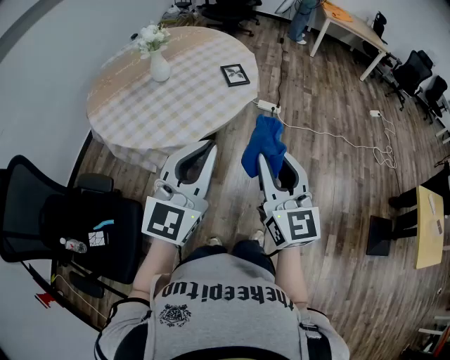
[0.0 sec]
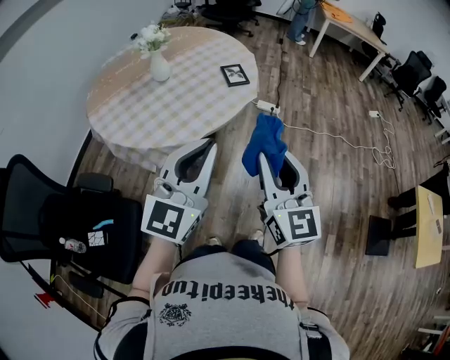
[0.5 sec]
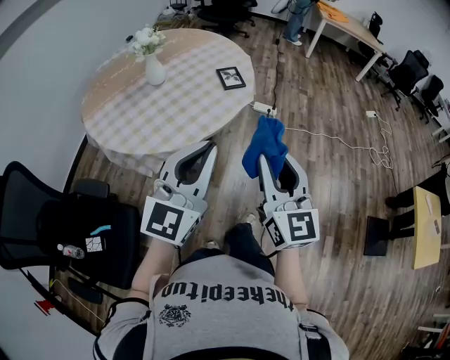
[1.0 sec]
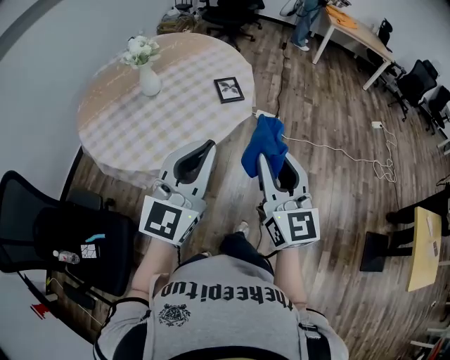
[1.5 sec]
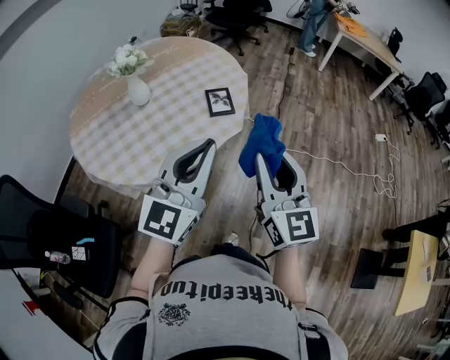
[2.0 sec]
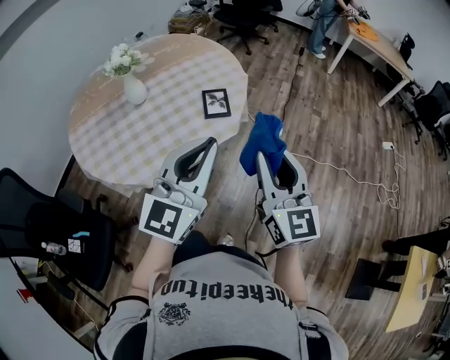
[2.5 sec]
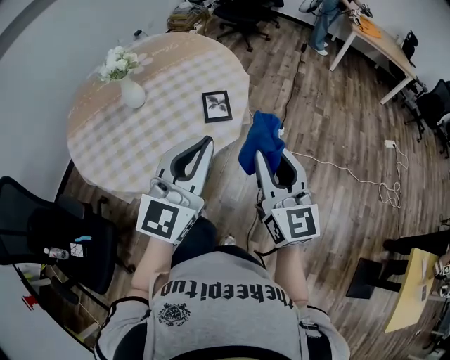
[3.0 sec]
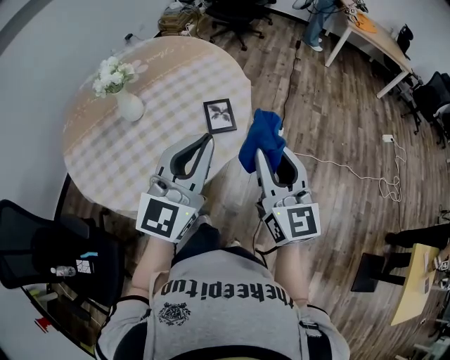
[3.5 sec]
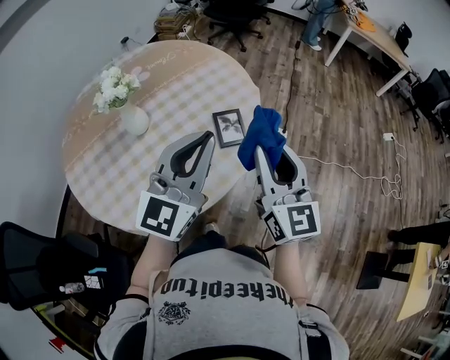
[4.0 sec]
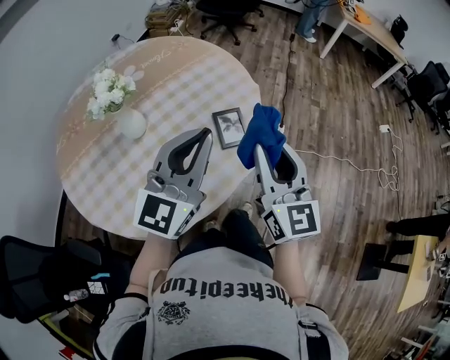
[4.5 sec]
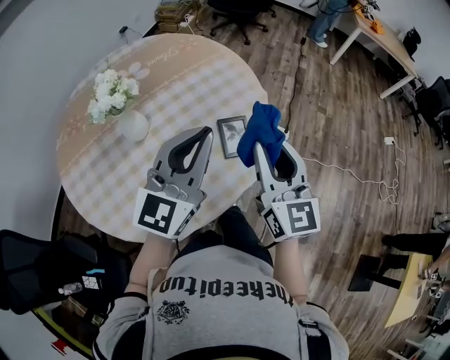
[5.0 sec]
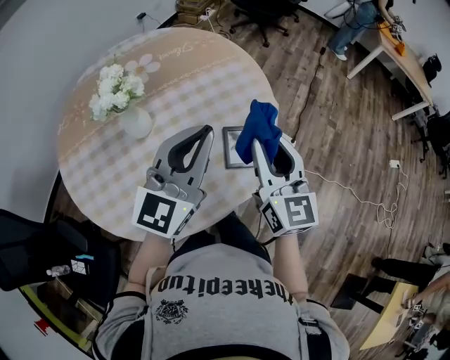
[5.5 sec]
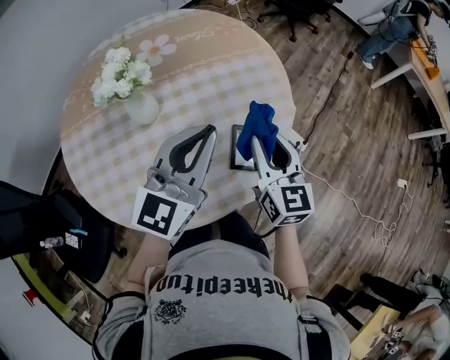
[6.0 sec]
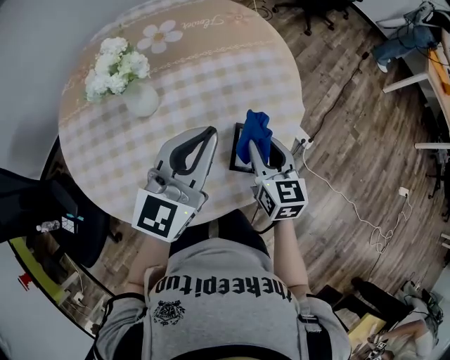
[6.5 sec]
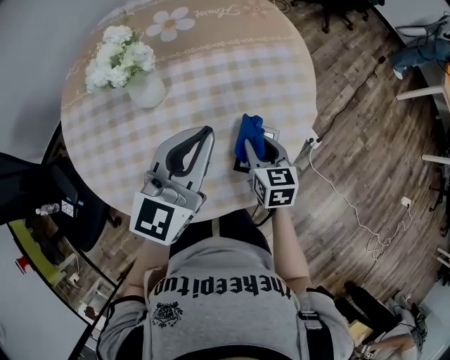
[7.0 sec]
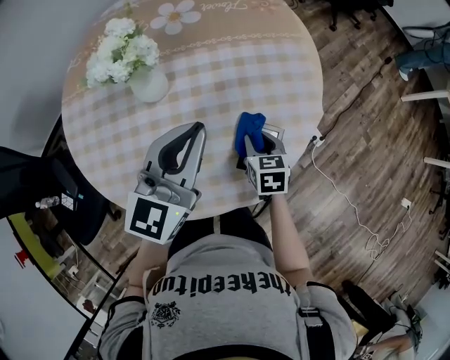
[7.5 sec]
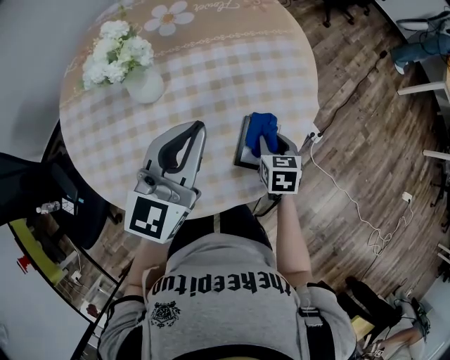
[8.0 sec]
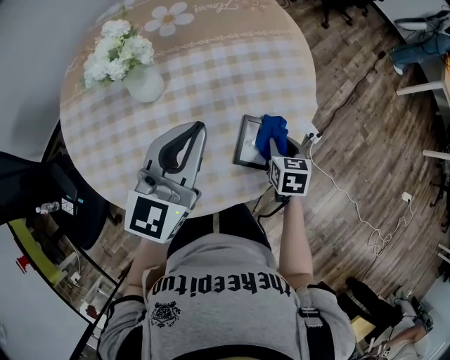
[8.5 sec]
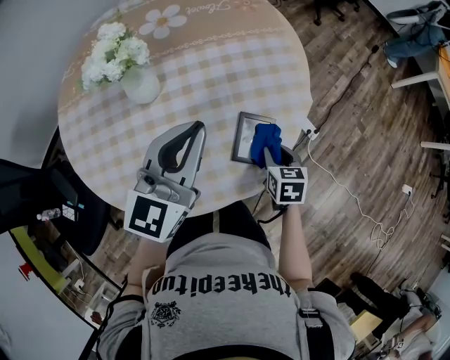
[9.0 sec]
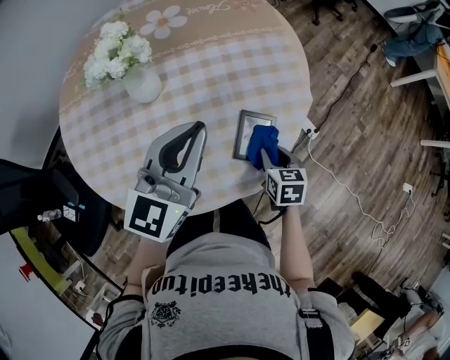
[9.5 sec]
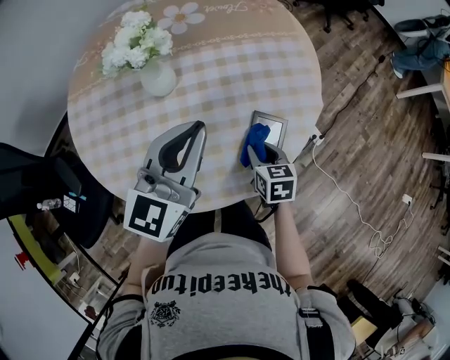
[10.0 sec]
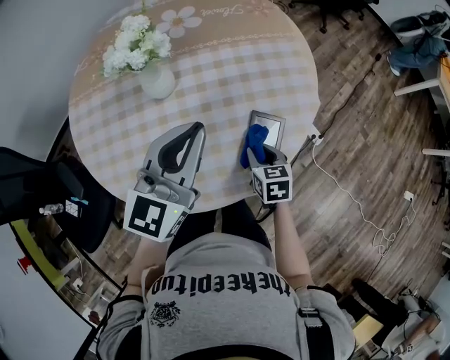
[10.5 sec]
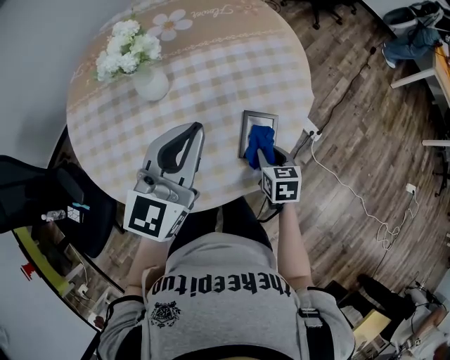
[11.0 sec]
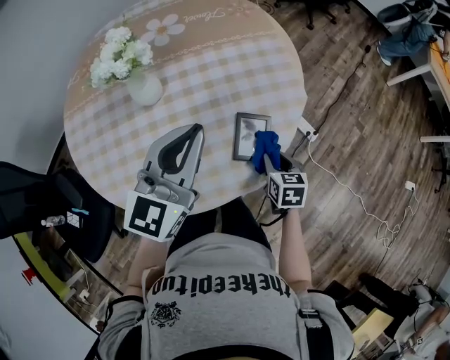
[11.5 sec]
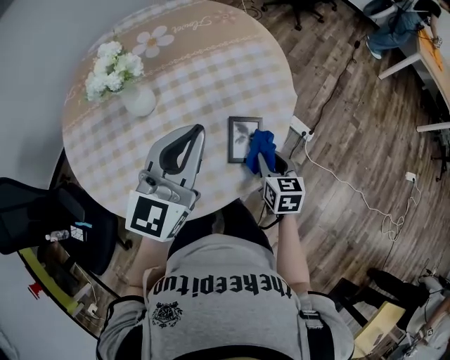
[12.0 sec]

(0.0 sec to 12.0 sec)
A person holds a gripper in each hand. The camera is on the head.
0.0 sec - 2.0 sec: The left gripper shifts roughly 20 cm forward and to the right. The right gripper is displaced forward by roughly 20 cm.
2.0 sec - 4.0 sec: Both grippers move forward, about 20 cm.
4.0 sec - 6.0 sec: The left gripper shifts about 15 cm forward; the right gripper goes roughly 25 cm forward and downward, and swivels roughly 20 degrees.
6.0 sec - 8.0 sec: The left gripper shifts about 5 cm downward. The right gripper shifts approximately 20 cm downward, and angles its fingers downward, by roughly 40 degrees.
8.0 sec - 10.0 sec: The right gripper is displaced to the left and backward by about 10 cm.
10.0 sec - 12.0 sec: The right gripper moves to the right, approximately 10 cm. Meanwhile the left gripper travels to the right by about 5 cm.

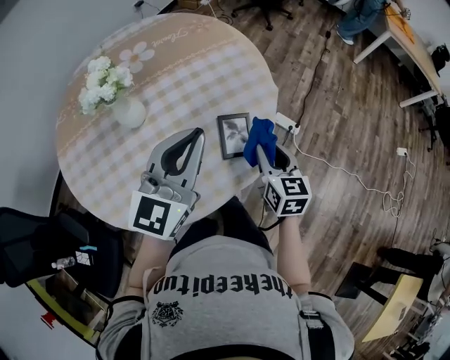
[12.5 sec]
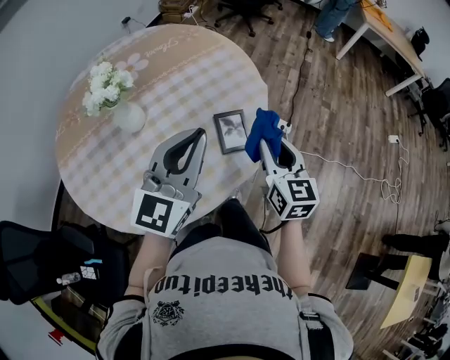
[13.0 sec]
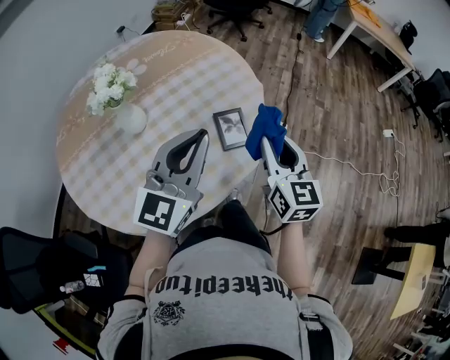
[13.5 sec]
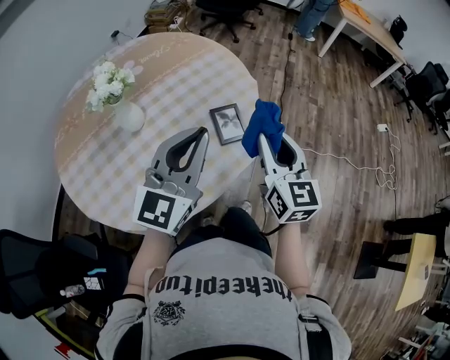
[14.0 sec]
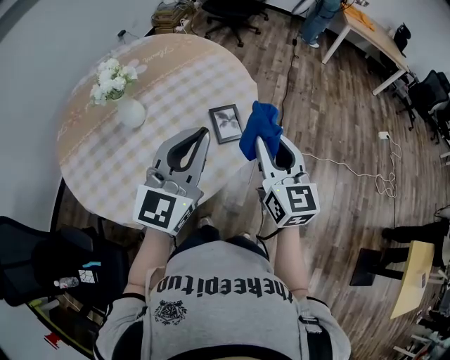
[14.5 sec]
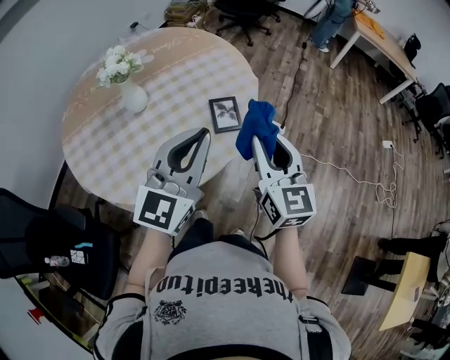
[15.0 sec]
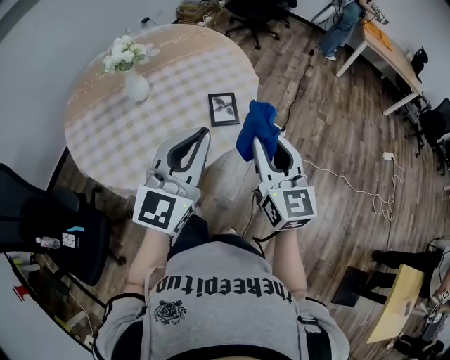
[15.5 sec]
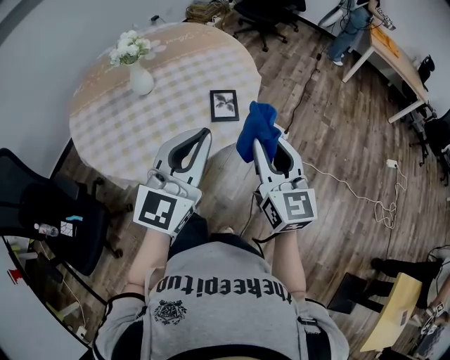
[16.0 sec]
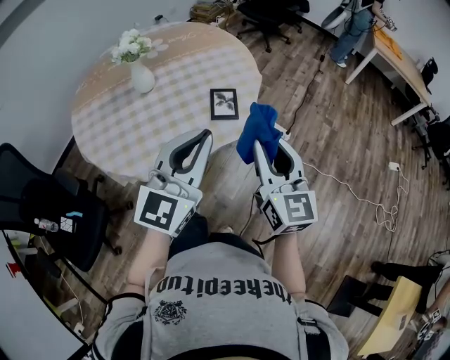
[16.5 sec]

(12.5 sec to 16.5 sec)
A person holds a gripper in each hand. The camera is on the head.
12.5 sec - 14.5 sec: The left gripper heads backward, covering approximately 10 cm. Meanwhile the right gripper shifts approximately 20 cm upward and backward, and swivels approximately 20 degrees.
14.5 sec - 16.5 sec: Both grippers move backward and to the right, about 15 cm.

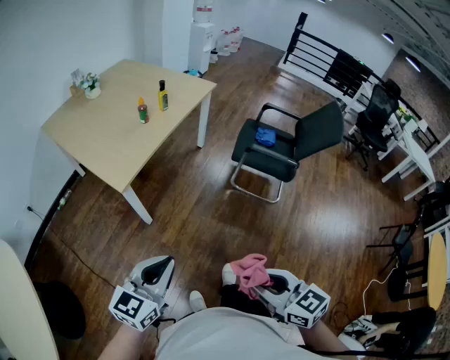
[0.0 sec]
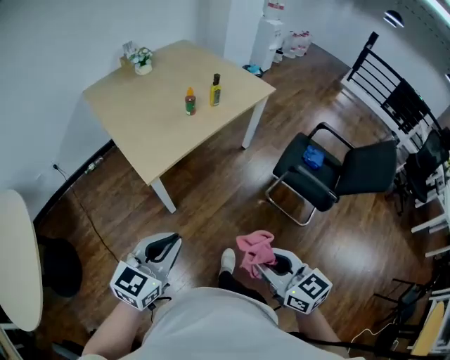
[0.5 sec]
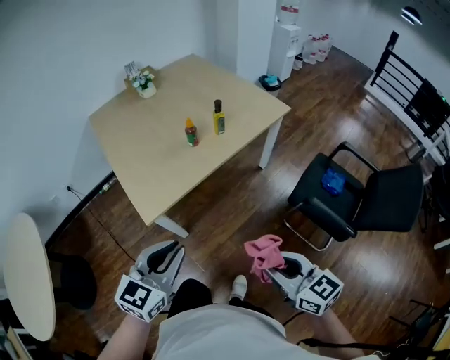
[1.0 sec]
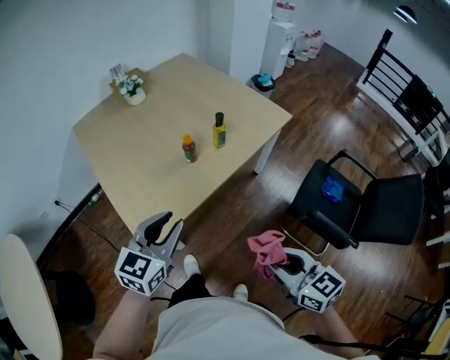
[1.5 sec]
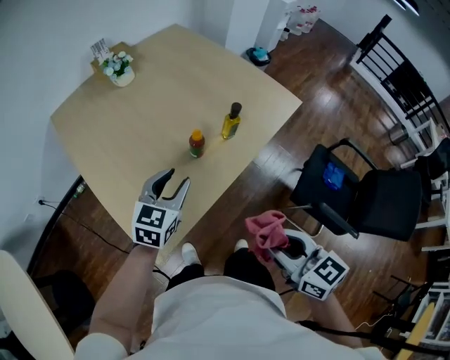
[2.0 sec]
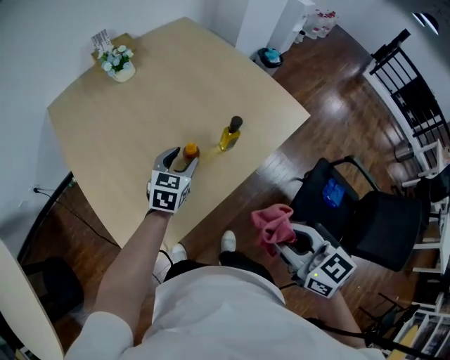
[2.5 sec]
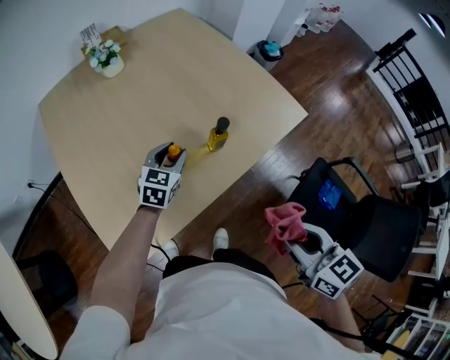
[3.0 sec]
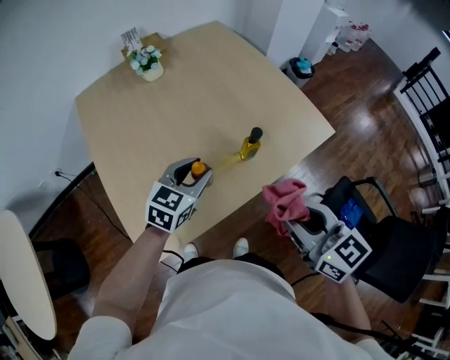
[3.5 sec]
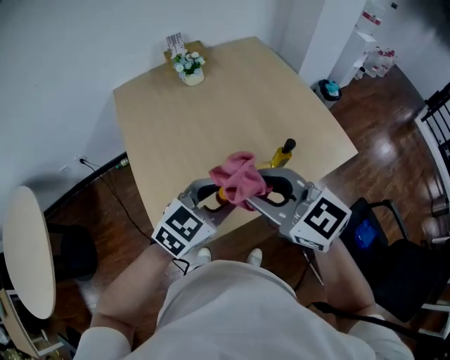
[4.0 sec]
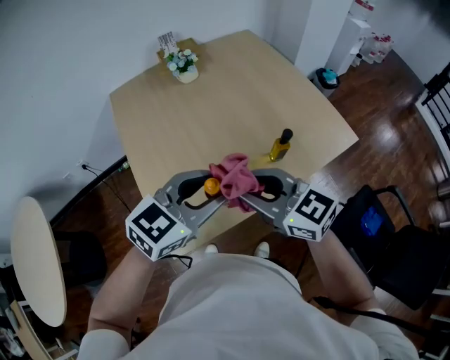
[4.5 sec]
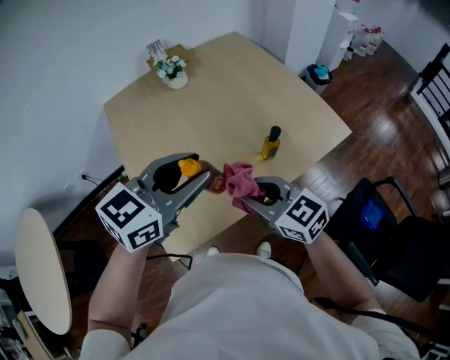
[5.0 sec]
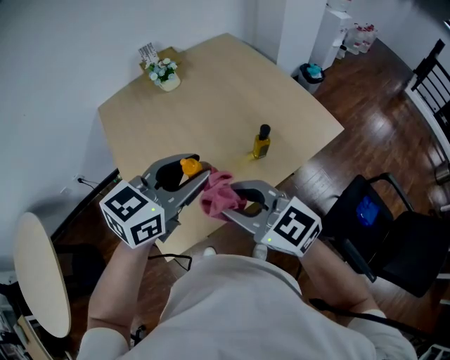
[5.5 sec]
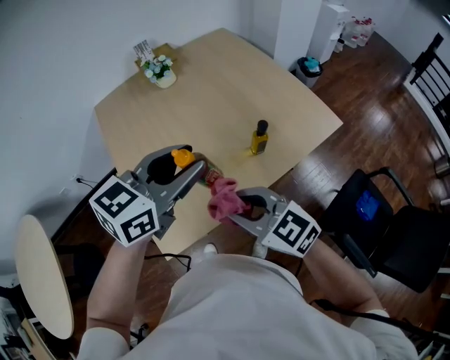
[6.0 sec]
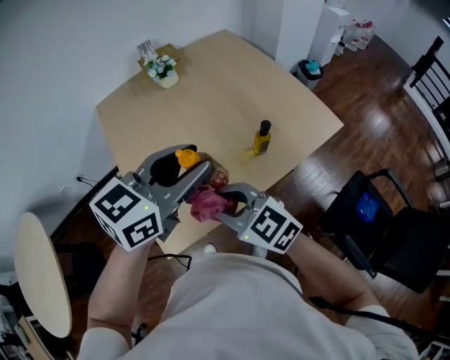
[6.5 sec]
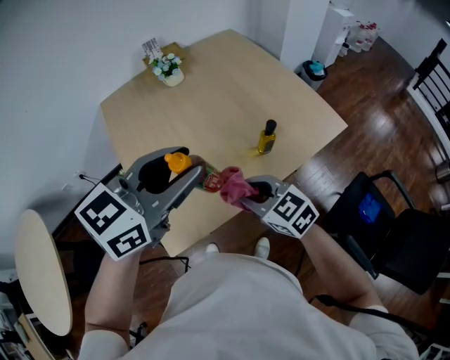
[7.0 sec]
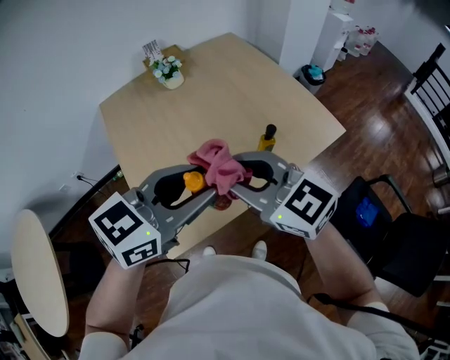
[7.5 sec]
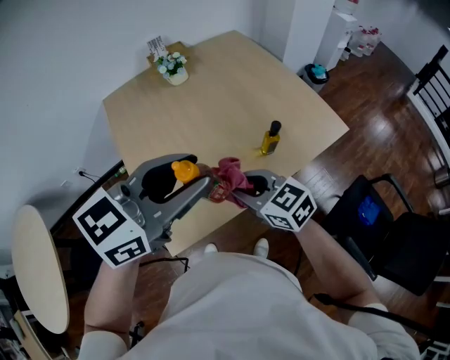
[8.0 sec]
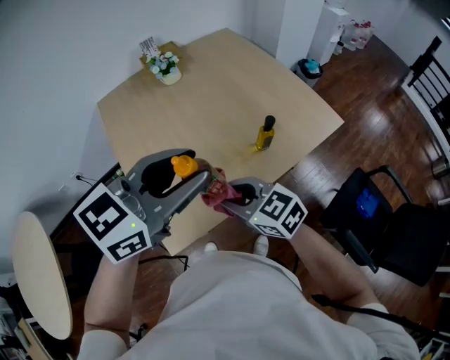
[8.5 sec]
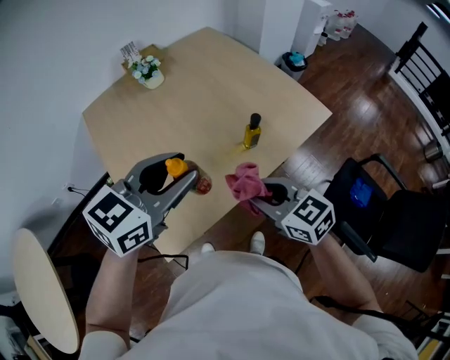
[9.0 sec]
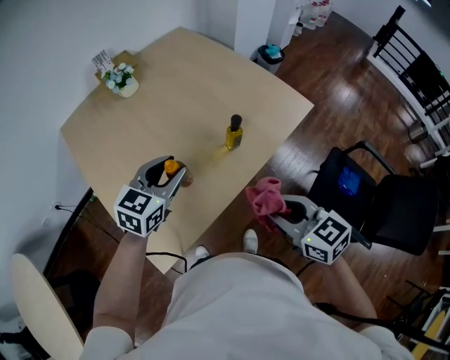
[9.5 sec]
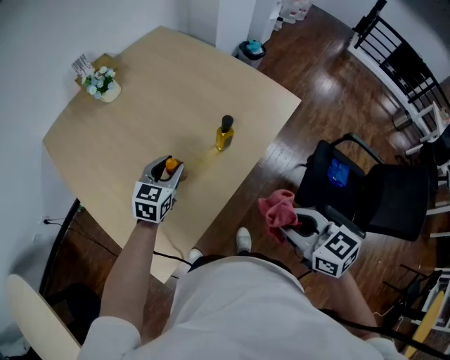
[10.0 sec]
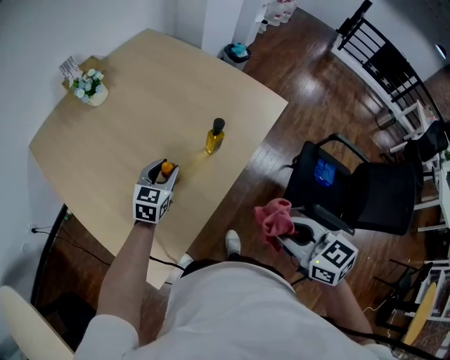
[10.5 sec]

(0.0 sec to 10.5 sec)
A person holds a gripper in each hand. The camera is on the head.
0.0 sec - 2.0 sec: The two grippers travel together, forward, approximately 60 cm. The left gripper turns by some 20 degrees, and opens up.
2.0 sec - 4.0 sec: The left gripper is displaced upward by about 5 cm; the right gripper shifts approximately 25 cm forward, upward and to the left, and changes its angle by some 50 degrees.
4.0 sec - 6.5 sec: The right gripper goes up and down, roughly 10 cm each way, reversing 2 times. Meanwhile the left gripper travels upward by some 10 cm.
6.5 sec - 8.5 sec: The right gripper moves up and down over approximately 15 cm, changing direction 2 times; the left gripper shifts by some 5 cm.
8.5 sec - 10.5 sec: The left gripper shifts some 35 cm downward and forward. Meanwhile the right gripper is displaced to the right by approximately 20 cm, and rotates approximately 40 degrees.
